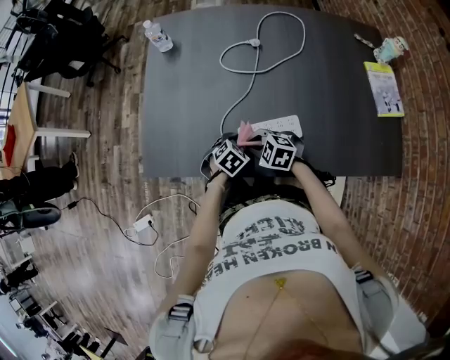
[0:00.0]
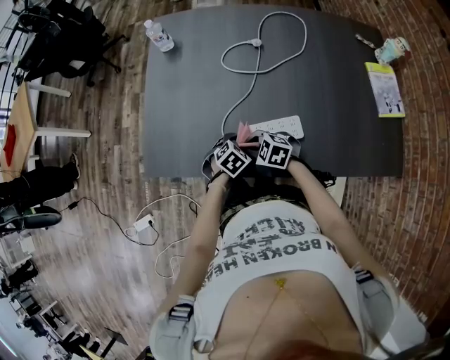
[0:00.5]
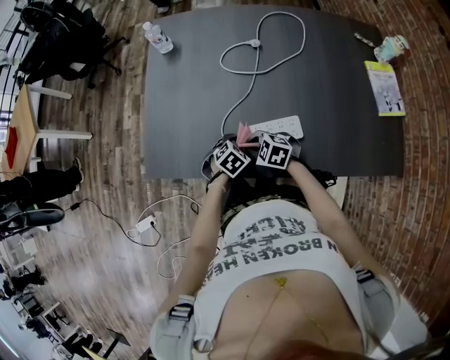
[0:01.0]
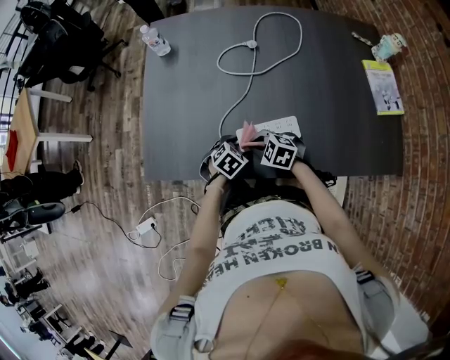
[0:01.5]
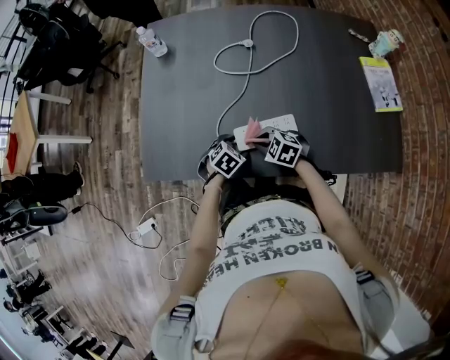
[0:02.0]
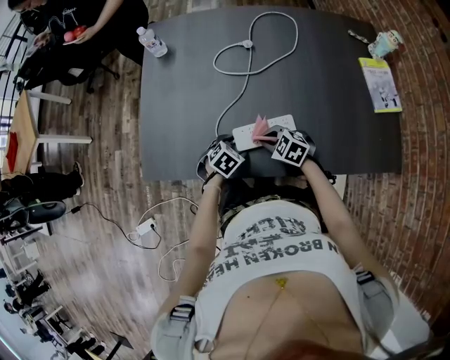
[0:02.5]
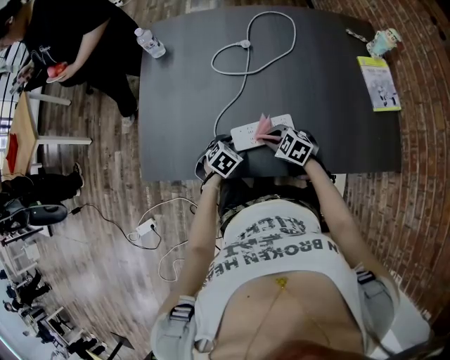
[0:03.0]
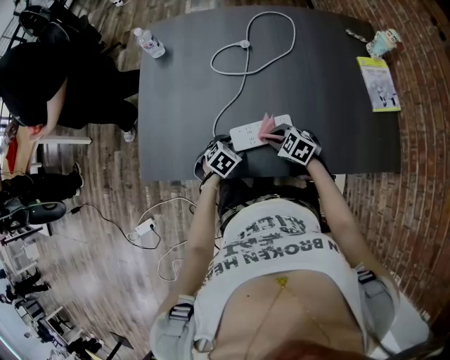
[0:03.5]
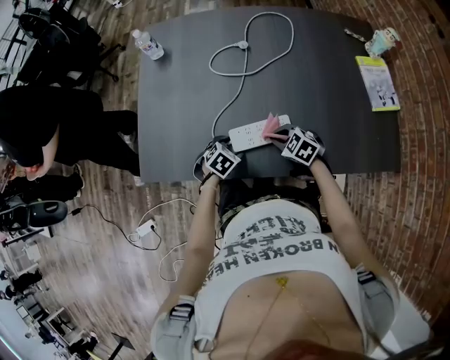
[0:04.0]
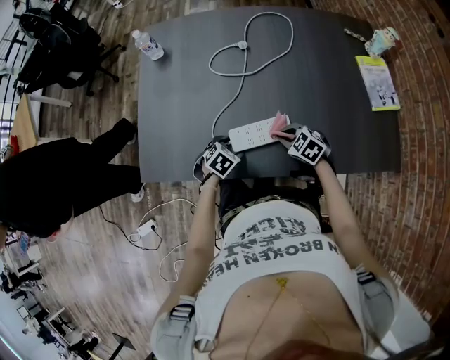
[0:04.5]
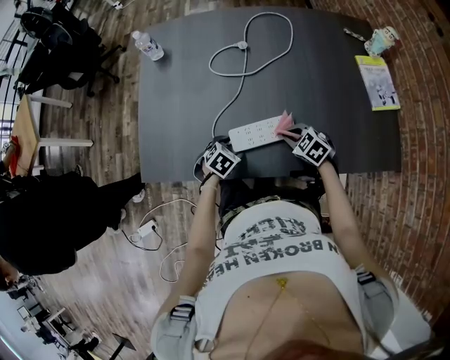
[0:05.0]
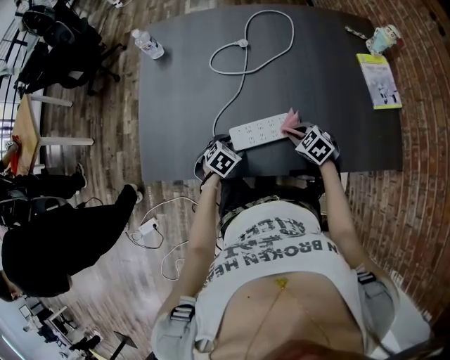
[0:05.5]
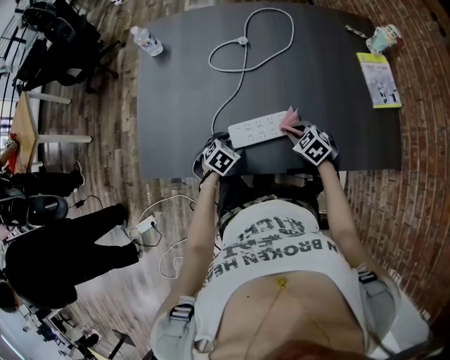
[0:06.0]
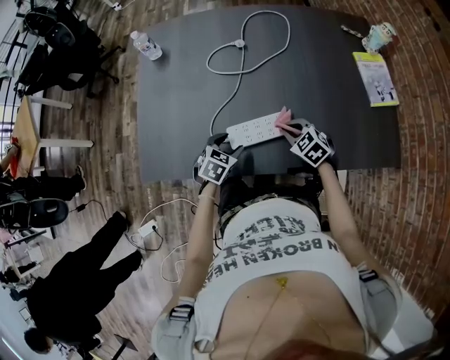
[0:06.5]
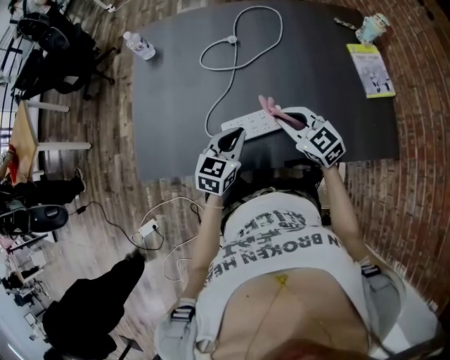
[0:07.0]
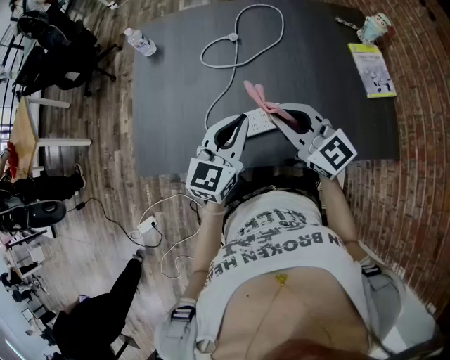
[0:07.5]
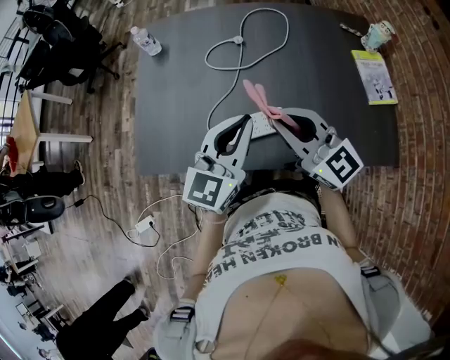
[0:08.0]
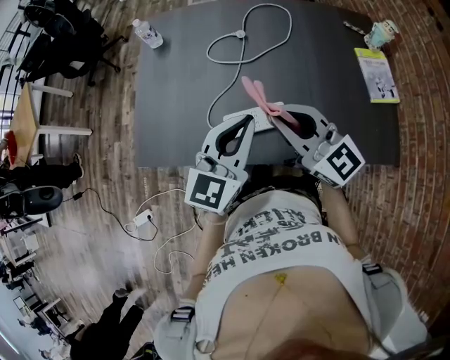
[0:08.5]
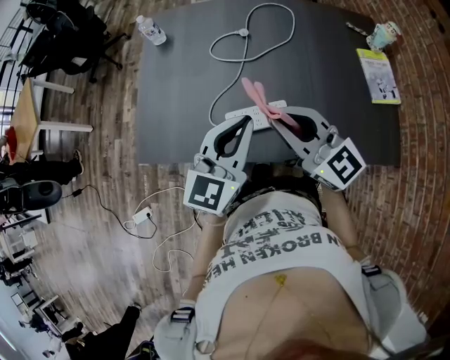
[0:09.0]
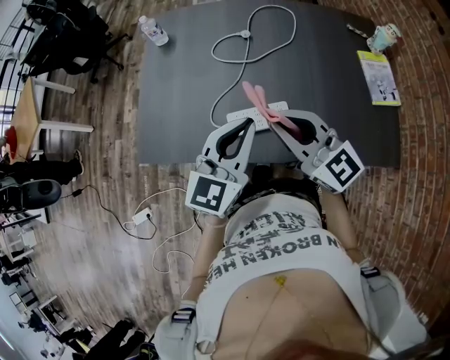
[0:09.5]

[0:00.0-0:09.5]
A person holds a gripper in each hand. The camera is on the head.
0:00.0 to 0:02.0: The grippers make only small movements.
0:02.0 to 0:04.0: The right gripper ends up some 10 cm from where it was.
0:04.0 to 0:05.5: The right gripper shifts roughly 5 cm to the right.
0:05.5 to 0:07.5: Both grippers travel together upward, some 30 cm. The left gripper angles its fingers upward, by roughly 50 degrees, and closes up; the right gripper angles its fingers upward, by roughly 50 degrees.
0:07.5 to 0:09.5: The left gripper moves upward, about 5 cm, while the right gripper ends up roughly 5 cm from where it was.

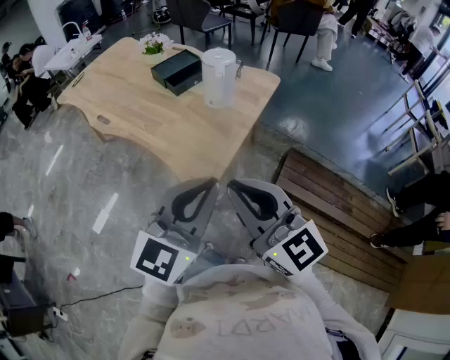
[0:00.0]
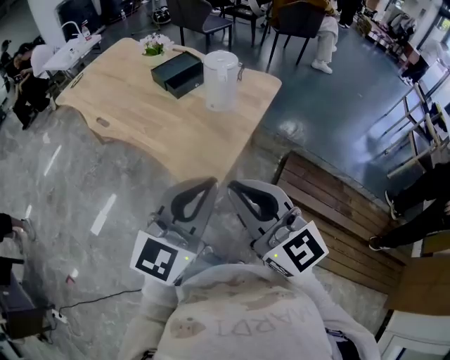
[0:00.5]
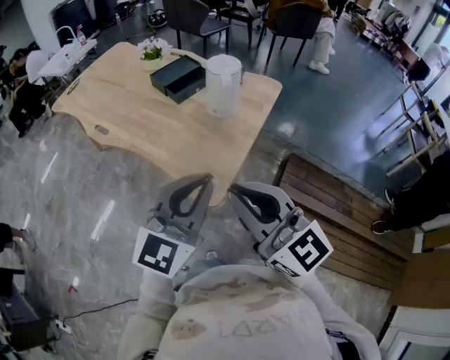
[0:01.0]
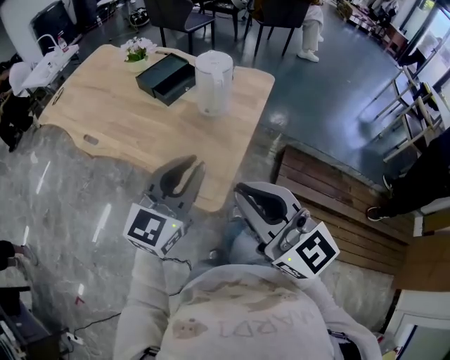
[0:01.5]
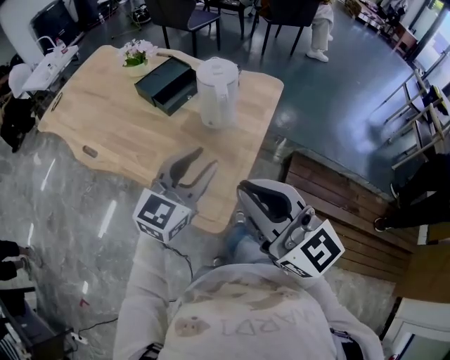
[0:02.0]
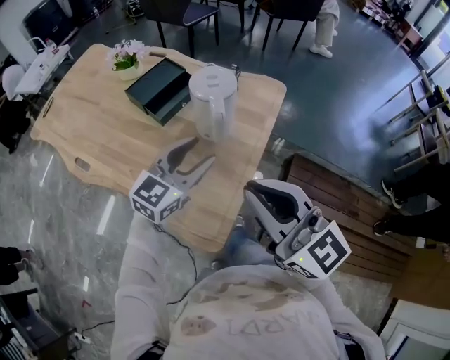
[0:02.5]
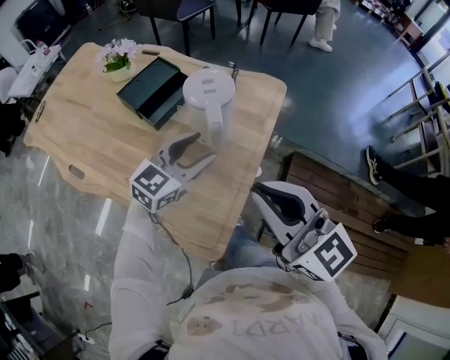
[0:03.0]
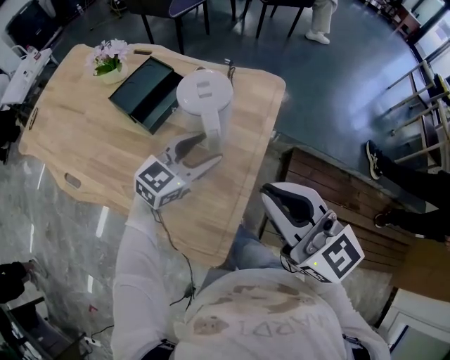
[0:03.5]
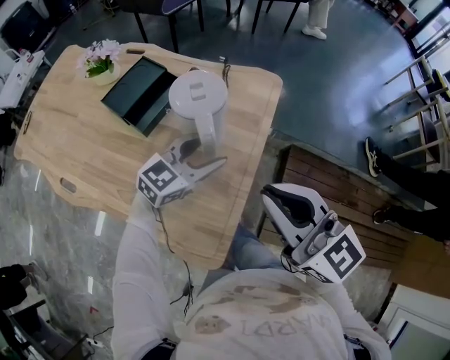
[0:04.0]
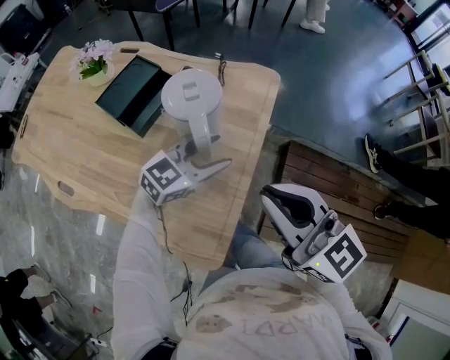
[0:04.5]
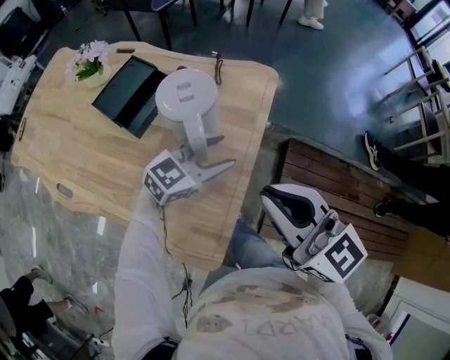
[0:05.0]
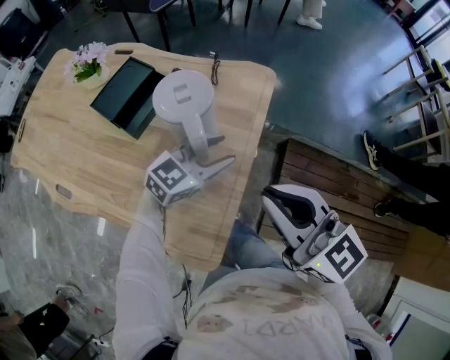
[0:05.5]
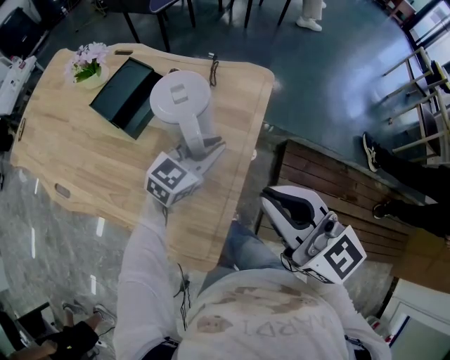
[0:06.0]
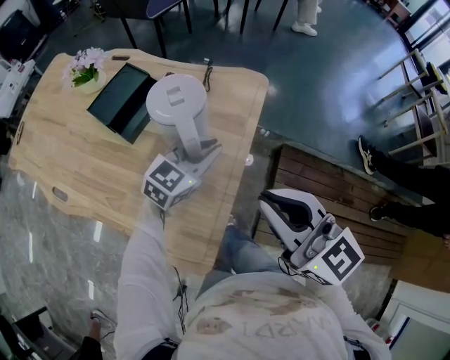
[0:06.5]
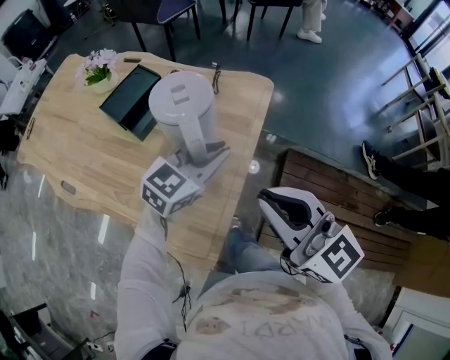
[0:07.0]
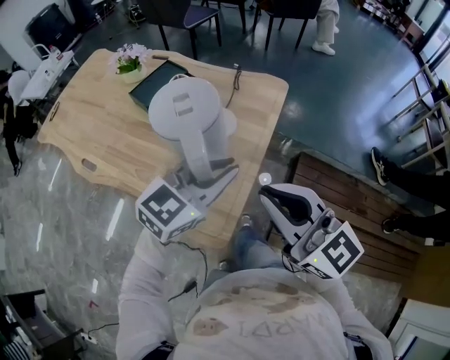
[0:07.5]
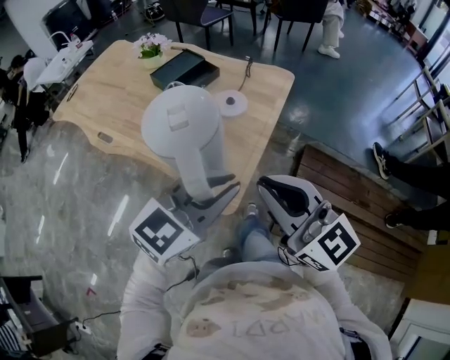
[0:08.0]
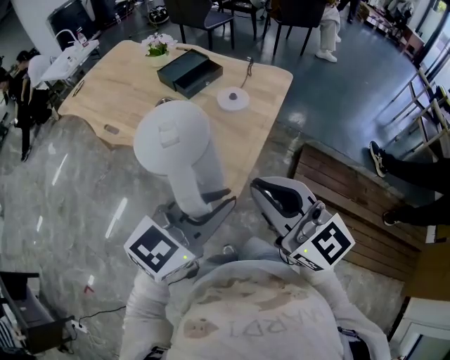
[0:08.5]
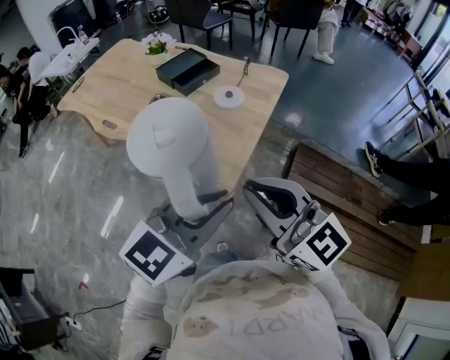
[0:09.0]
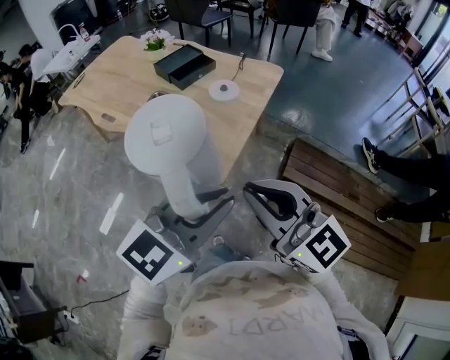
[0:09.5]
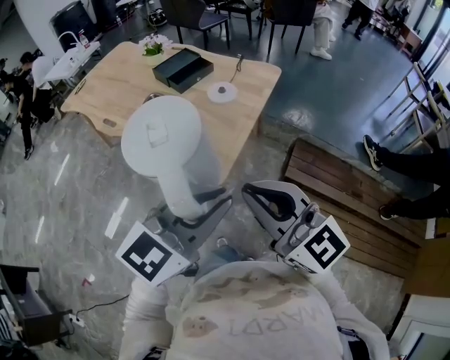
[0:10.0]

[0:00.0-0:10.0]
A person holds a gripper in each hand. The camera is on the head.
0:00.0 to 0:02.0: The left gripper shifts about 25 cm forward, and opens up, while the right gripper shifts roughly 15 cm forward.
0:02.0 to 0:04.0: The right gripper heads forward, covering about 20 cm, while the left gripper travels forward and downward by approximately 25 cm, turns by about 30 degrees, and opens.
0:04.0 to 0:06.0: The left gripper shifts by roughly 5 cm, and closes.
0:06.0 to 0:08.0: The left gripper travels backward and upward by roughly 40 cm, while the right gripper travels backward by some 25 cm.
0:08.0 to 0:10.0: Both grippers move backward, some 15 cm.

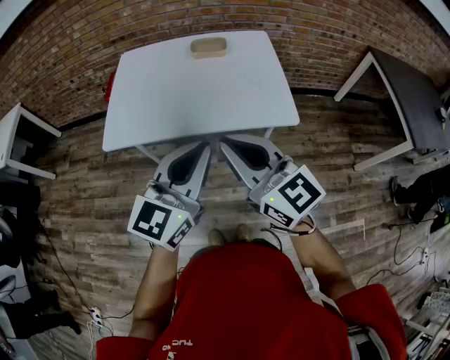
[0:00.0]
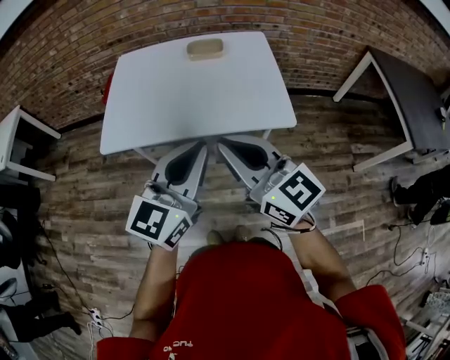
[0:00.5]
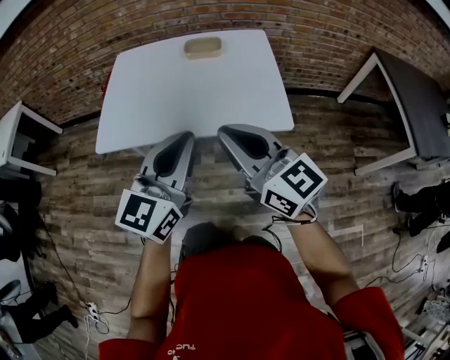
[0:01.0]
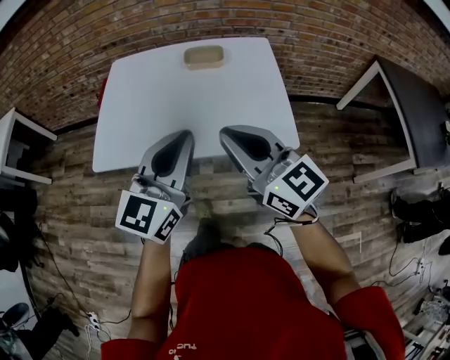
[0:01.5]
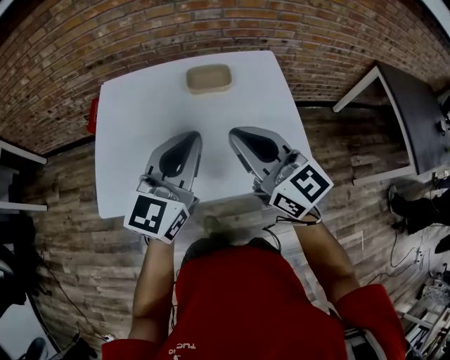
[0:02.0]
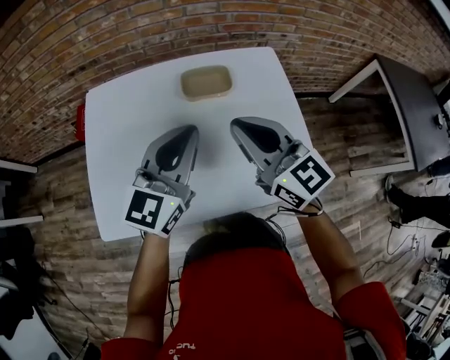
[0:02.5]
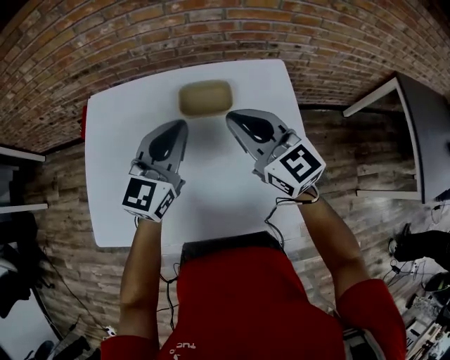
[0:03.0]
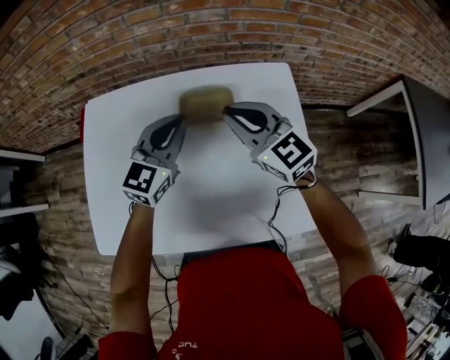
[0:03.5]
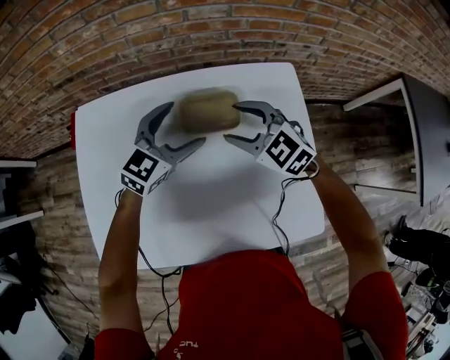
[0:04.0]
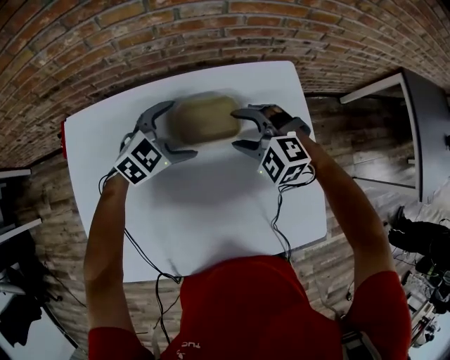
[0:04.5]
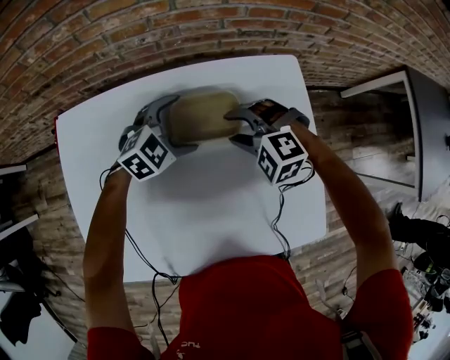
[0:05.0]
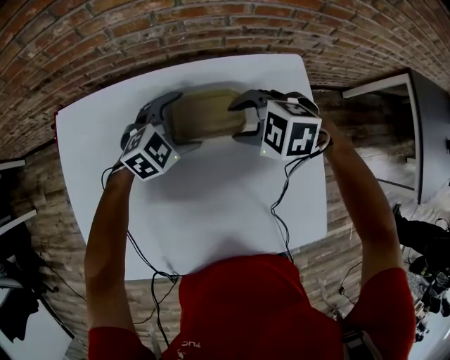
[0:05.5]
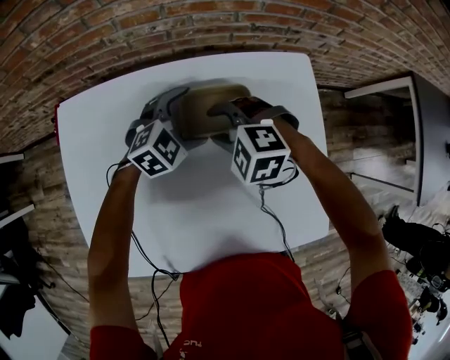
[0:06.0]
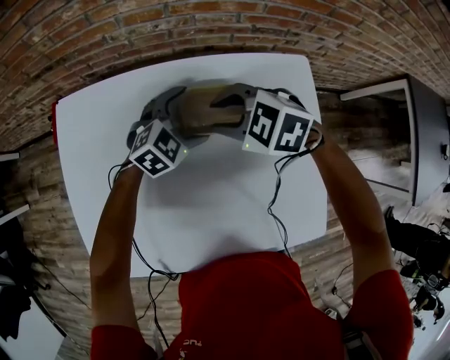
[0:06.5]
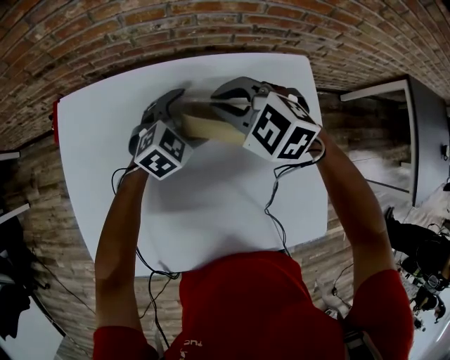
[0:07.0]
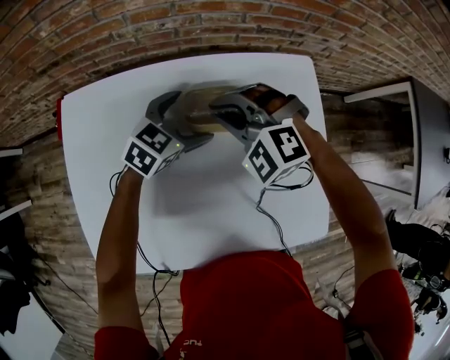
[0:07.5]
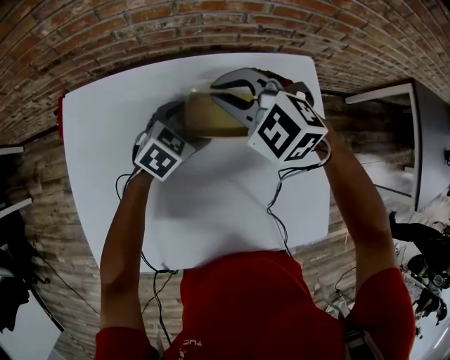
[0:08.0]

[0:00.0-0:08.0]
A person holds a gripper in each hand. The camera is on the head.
0:00.0 to 0:02.0: Both grippers move forward, some 30 cm.
0:02.0 to 0:04.0: The two grippers go roughly 35 cm forward and downward. The right gripper tips its fingers downward by roughly 40 degrees, and opens up; the left gripper rotates roughly 30 degrees, and opens its fingers.
0:04.0 to 0:06.0: The grippers both shift downward by some 10 cm. The right gripper changes its angle by some 30 degrees, while the left gripper swivels some 30 degrees.
0:06.0 to 0:08.0: The right gripper goes about 10 cm upward, and closes, while the left gripper swivels some 20 degrees.
